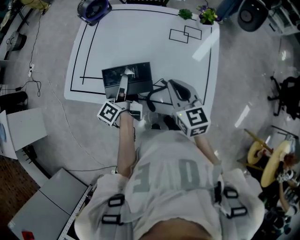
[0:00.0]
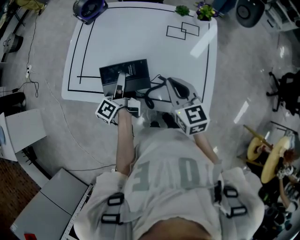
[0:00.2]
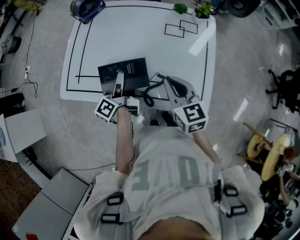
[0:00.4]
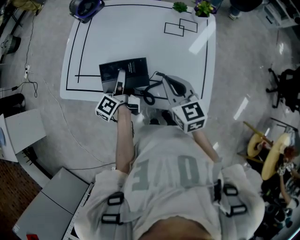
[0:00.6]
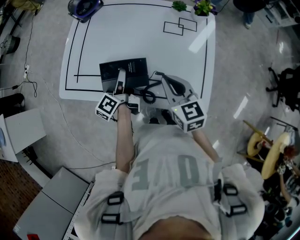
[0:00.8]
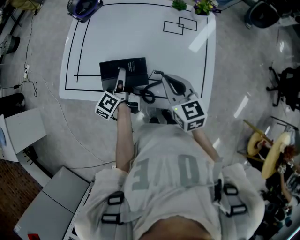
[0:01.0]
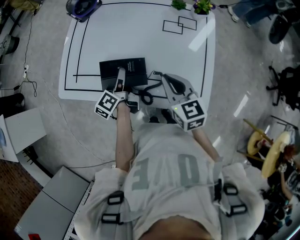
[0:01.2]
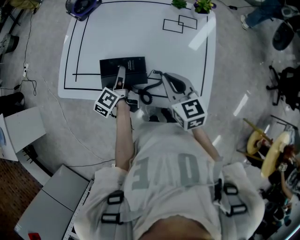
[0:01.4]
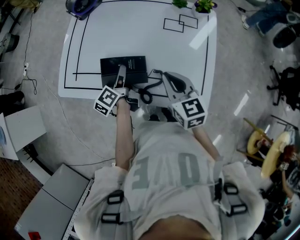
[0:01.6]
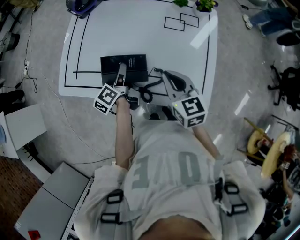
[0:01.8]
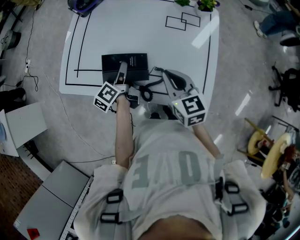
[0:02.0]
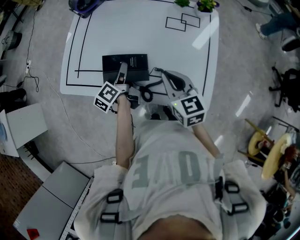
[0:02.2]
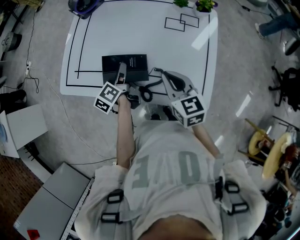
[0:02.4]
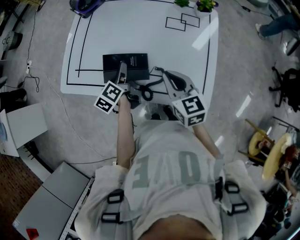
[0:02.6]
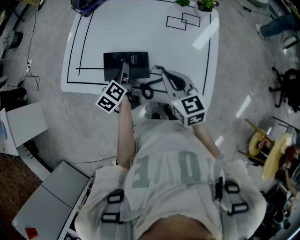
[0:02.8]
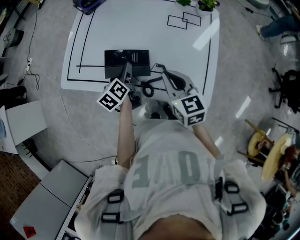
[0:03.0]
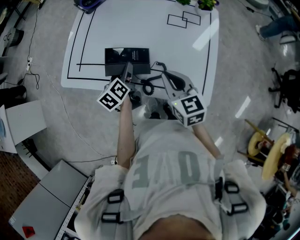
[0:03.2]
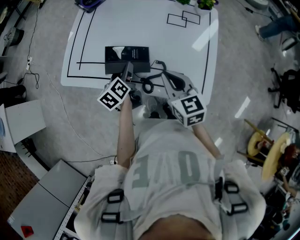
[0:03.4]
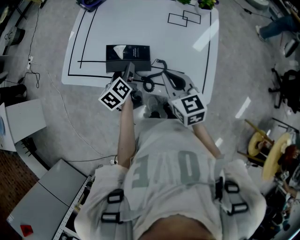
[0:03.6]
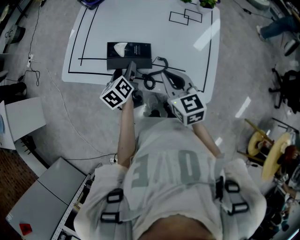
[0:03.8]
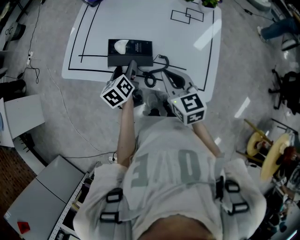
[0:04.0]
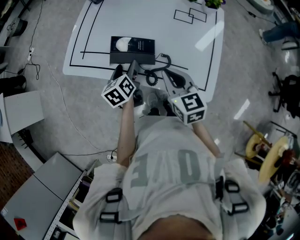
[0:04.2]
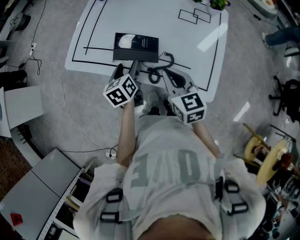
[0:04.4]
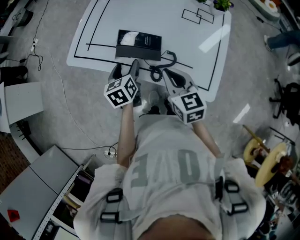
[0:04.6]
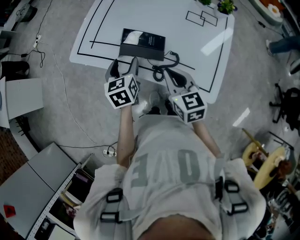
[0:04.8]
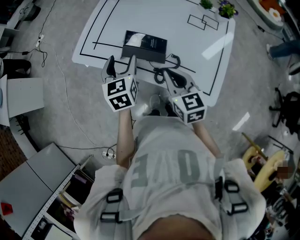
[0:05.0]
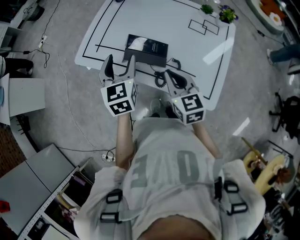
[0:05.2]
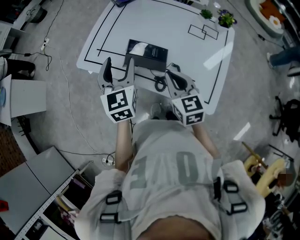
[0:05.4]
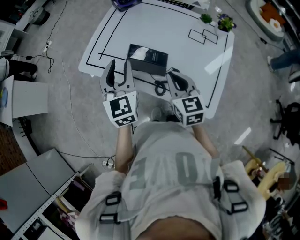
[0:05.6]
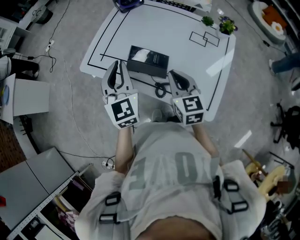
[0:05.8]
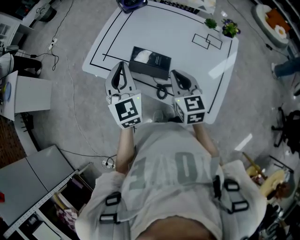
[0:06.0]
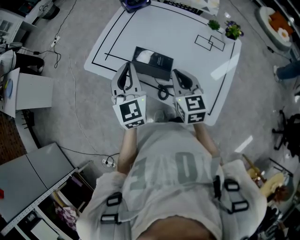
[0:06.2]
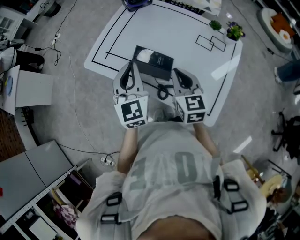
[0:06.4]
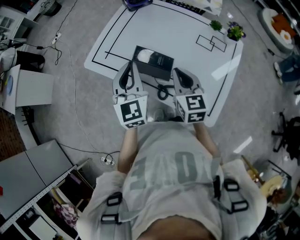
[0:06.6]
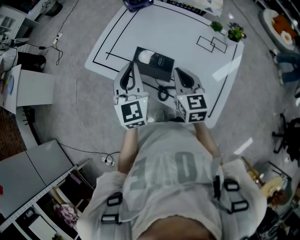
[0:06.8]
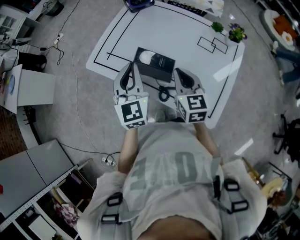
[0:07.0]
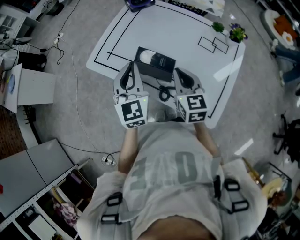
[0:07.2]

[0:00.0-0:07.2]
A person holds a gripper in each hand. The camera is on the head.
0:00.0 to 0:01.4: The left gripper heads downward, covering about 5 cm.
0:01.4 to 0:02.8: The left gripper changes its angle by about 20 degrees, and opens.
0:02.8 to 0:04.4: The left gripper shifts about 5 cm backward. Meanwhile the right gripper changes place by about 5 cm.
0:04.4 to 0:05.8: The left gripper heads upward, covering about 20 cm, turns by approximately 50 degrees, and closes up; the right gripper changes place by roughly 5 cm.
0:05.8 to 0:07.2: The grippers stay close to where they were, moving slightly.

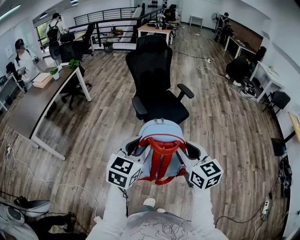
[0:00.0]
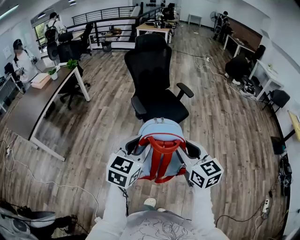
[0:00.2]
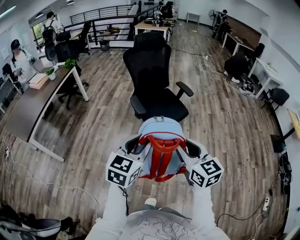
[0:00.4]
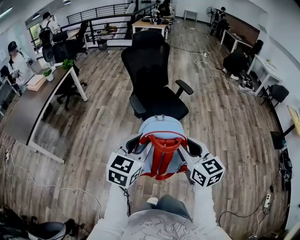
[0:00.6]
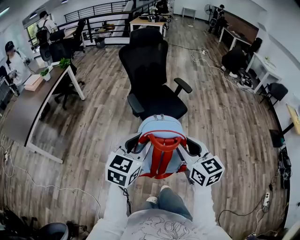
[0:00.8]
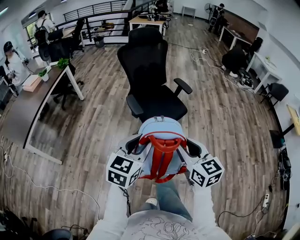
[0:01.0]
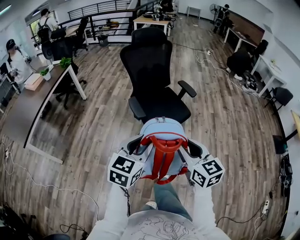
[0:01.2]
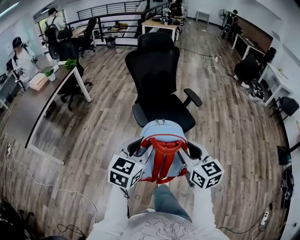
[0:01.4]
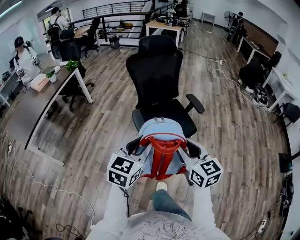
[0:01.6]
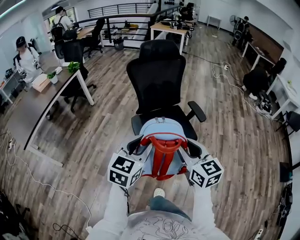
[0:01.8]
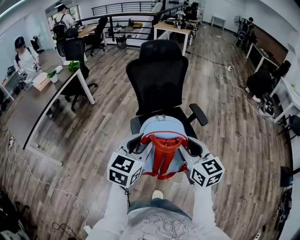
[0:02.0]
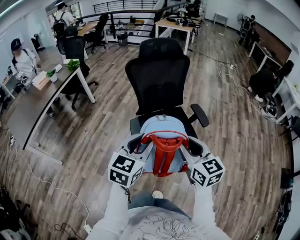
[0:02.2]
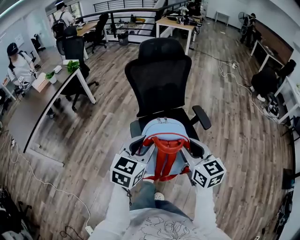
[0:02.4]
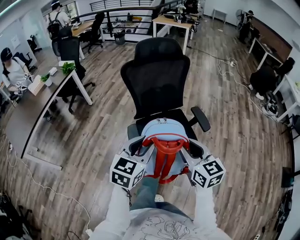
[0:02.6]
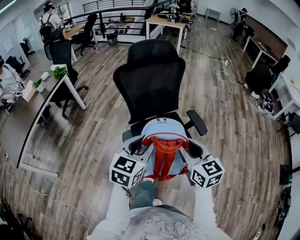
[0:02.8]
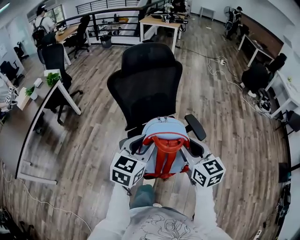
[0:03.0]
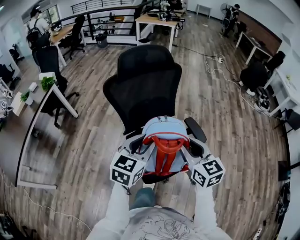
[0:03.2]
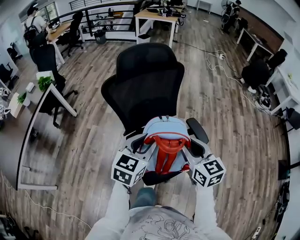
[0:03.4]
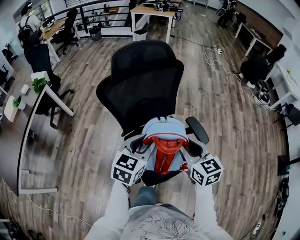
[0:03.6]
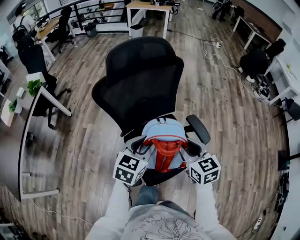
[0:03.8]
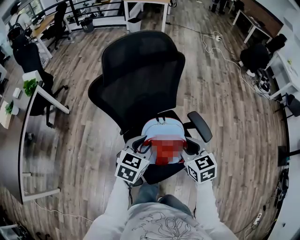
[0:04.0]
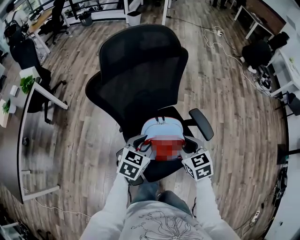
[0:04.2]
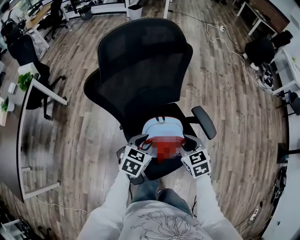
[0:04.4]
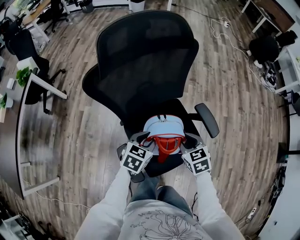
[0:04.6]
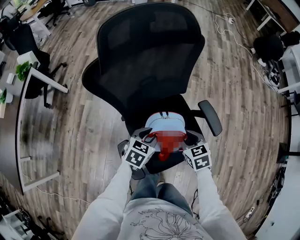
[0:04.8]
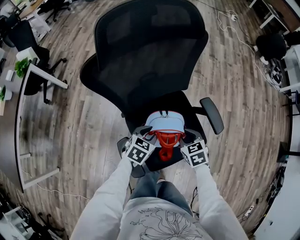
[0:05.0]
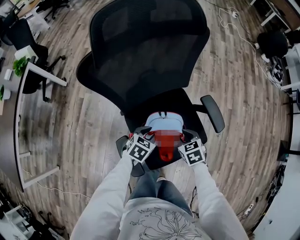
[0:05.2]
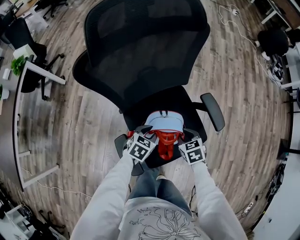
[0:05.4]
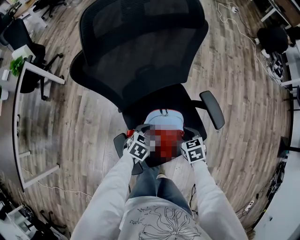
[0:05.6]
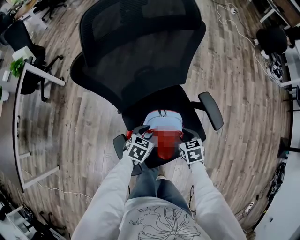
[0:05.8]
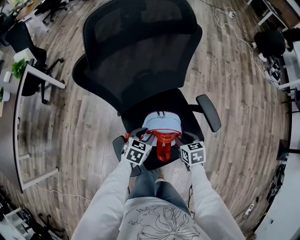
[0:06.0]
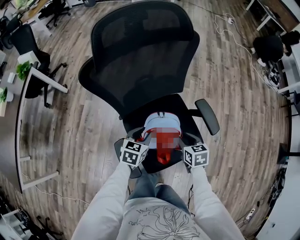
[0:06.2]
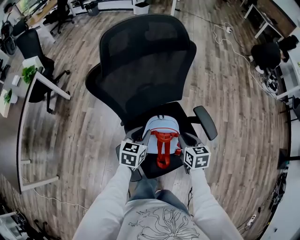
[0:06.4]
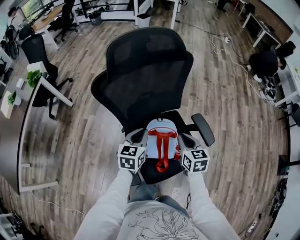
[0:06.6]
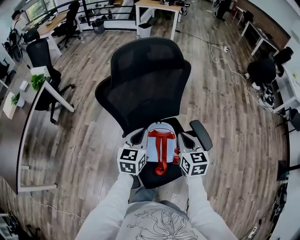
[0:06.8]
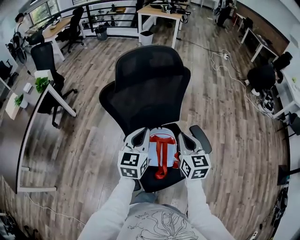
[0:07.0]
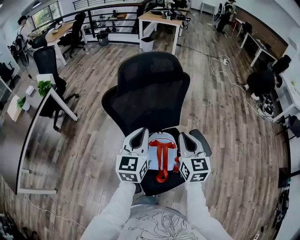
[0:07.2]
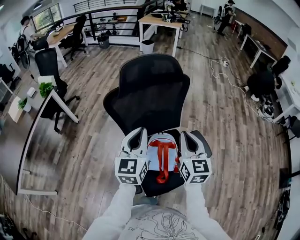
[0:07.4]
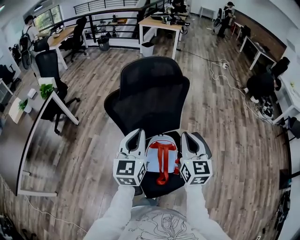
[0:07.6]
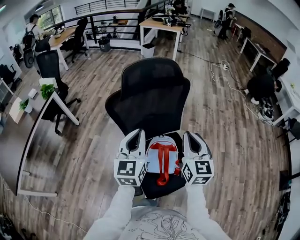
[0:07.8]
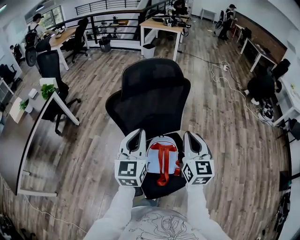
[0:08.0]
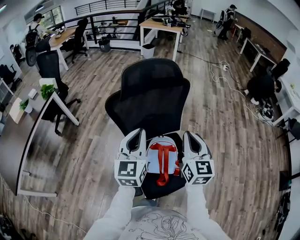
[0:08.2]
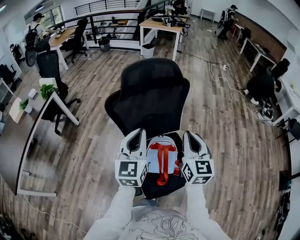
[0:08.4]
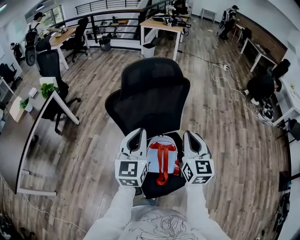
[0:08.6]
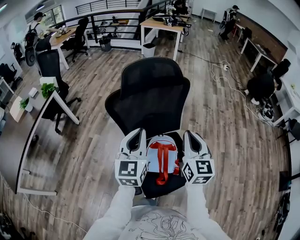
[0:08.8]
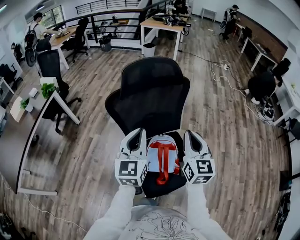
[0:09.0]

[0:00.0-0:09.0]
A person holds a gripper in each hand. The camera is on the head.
0:00.0 to 0:01.6: Both grippers travel together forward, about 25 cm.
0:01.6 to 0:03.0: Both grippers move forward, some 30 cm.
0:03.0 to 0:04.4: Both grippers travel together downward and forward, about 25 cm. The left gripper rotates approximately 30 degrees; the right gripper tips its fingers downward by roughly 30 degrees.
0:04.4 to 0:06.0: The grippers both shift downward by roughly 15 cm. The right gripper turns by about 20 degrees.
0:06.0 to 0:07.6: The grippers both shift upward by some 35 cm. The right gripper points its fingers some 50 degrees further upward, and closes up. The left gripper tilts its fingers about 50 degrees upward, and closes its fingers.
0:07.6 to 0:09.0: There are only small adjustments of the grippers.

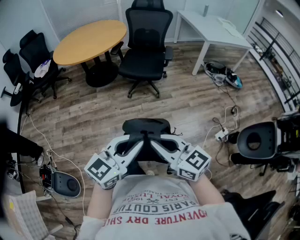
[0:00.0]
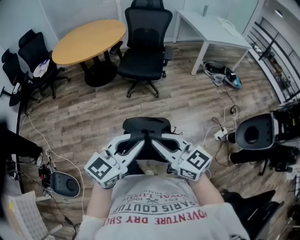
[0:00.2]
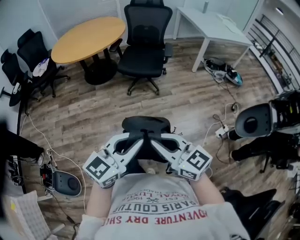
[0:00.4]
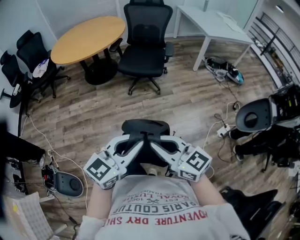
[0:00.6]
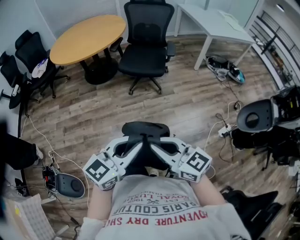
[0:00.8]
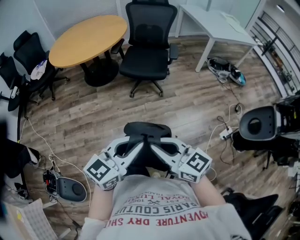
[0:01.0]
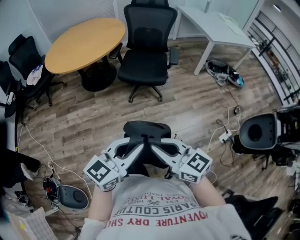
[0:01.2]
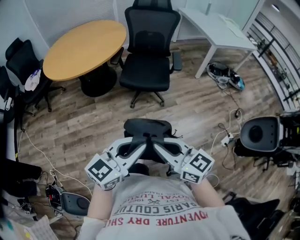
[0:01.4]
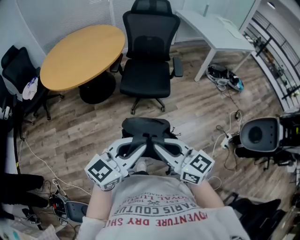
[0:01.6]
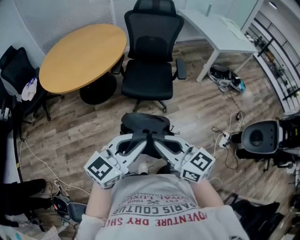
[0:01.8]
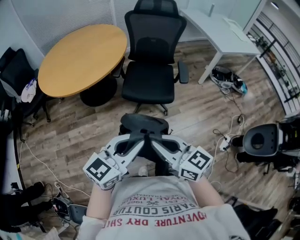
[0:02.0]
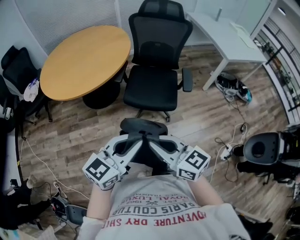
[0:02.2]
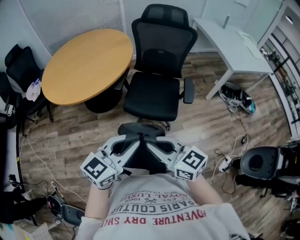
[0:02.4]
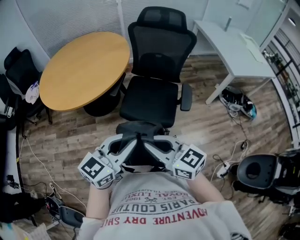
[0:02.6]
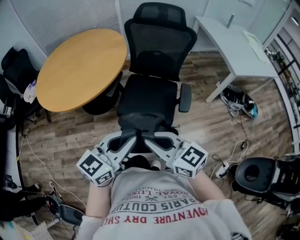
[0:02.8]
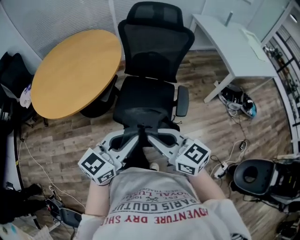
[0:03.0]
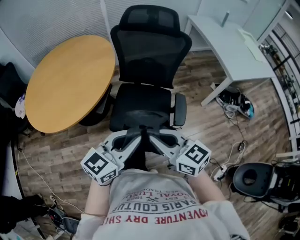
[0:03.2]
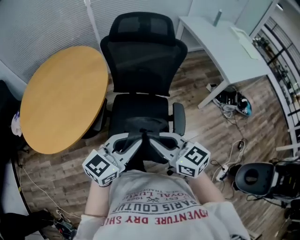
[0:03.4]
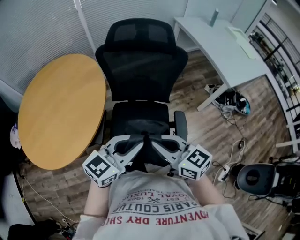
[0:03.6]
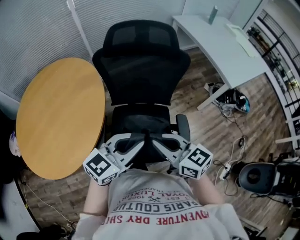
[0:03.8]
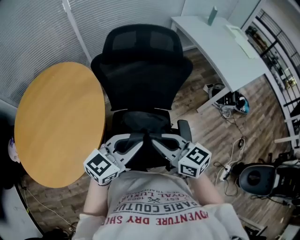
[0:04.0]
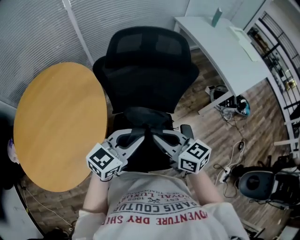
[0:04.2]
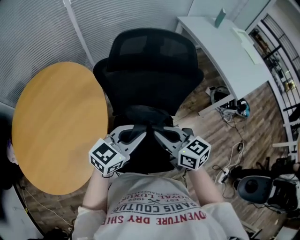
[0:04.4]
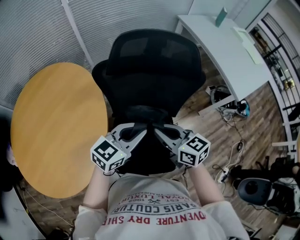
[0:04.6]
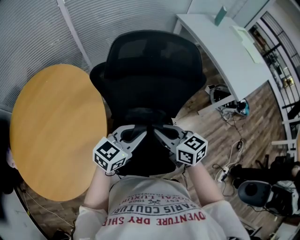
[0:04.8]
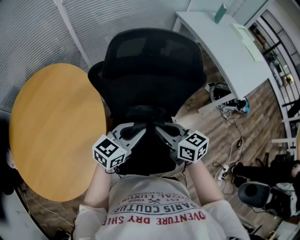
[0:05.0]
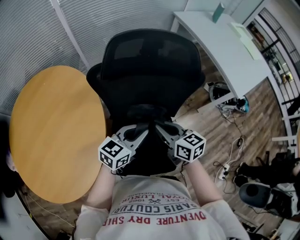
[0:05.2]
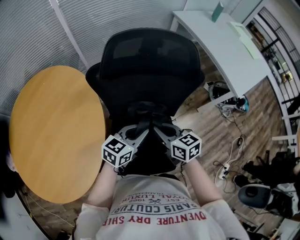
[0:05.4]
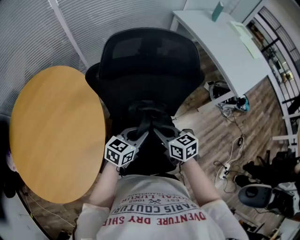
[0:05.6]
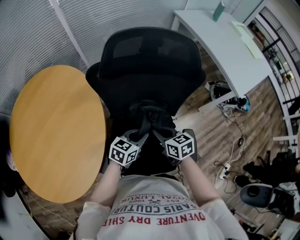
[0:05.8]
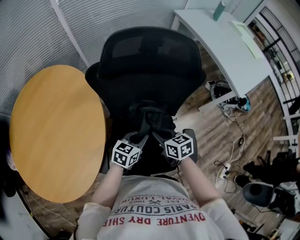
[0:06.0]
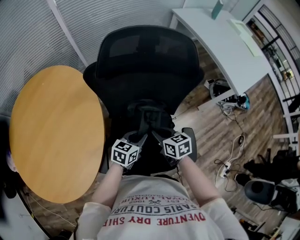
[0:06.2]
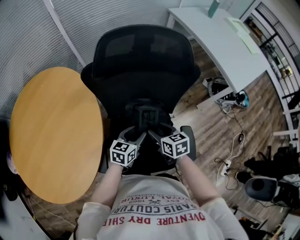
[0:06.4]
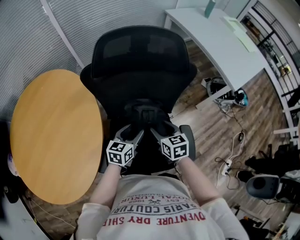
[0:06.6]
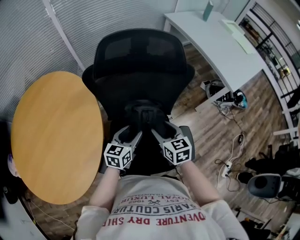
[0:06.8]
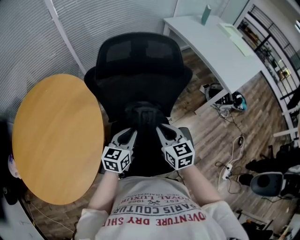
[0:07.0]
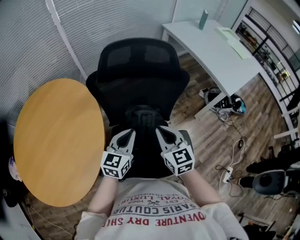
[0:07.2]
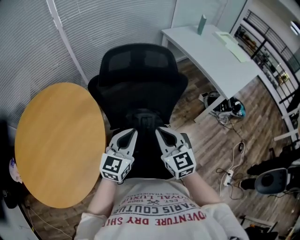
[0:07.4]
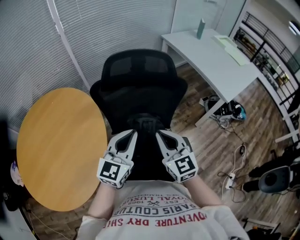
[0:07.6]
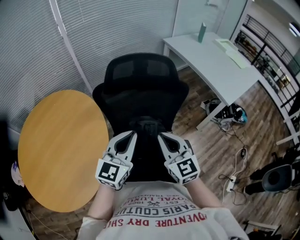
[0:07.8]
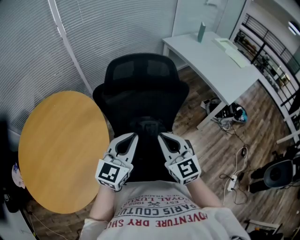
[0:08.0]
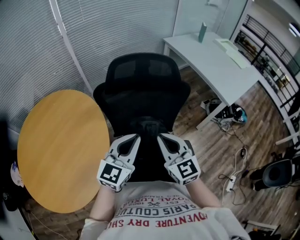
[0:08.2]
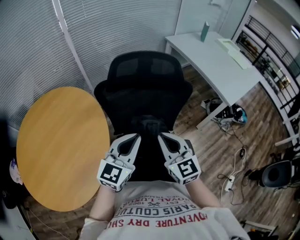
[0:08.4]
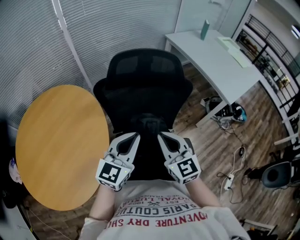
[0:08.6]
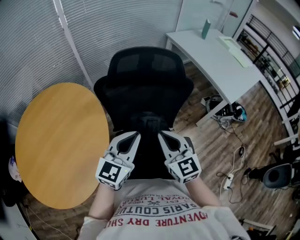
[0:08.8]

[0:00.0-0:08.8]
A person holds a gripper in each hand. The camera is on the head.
0:00.0 to 0:01.4: The grippers both shift forward and to the left by some 20 cm.
0:01.4 to 0:03.0: The two grippers travel together, forward, roughly 40 cm.
0:03.0 to 0:04.4: The two grippers travel together, forward, some 40 cm. The left gripper swivels some 20 degrees. The right gripper changes its angle by about 20 degrees.
0:04.4 to 0:05.8: Both grippers travel together downward, some 15 cm. The left gripper turns by some 20 degrees.
0:05.8 to 0:07.4: The two grippers go some 20 cm upward. The left gripper rotates roughly 30 degrees, and opens, then closes again, while the right gripper turns by about 40 degrees, and opens, then closes again.
0:07.4 to 0:08.8: The left gripper goes roughly 5 cm upward.
